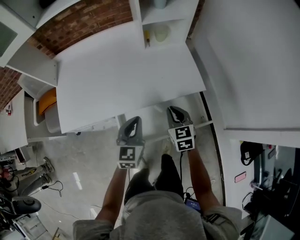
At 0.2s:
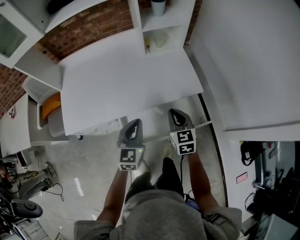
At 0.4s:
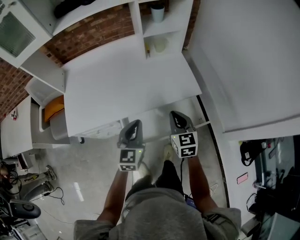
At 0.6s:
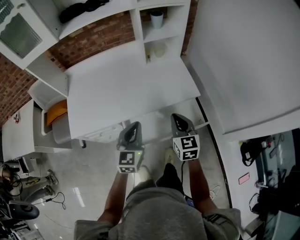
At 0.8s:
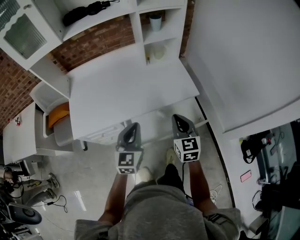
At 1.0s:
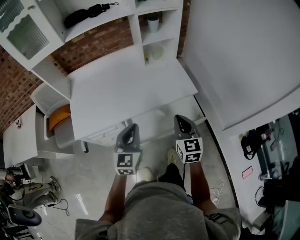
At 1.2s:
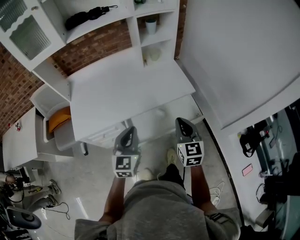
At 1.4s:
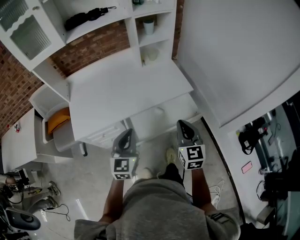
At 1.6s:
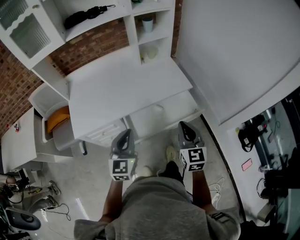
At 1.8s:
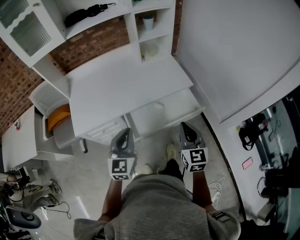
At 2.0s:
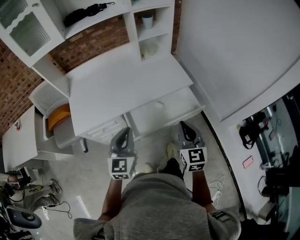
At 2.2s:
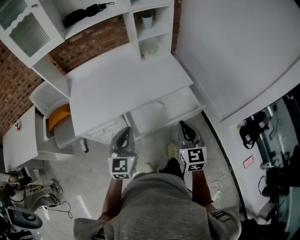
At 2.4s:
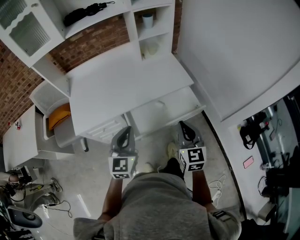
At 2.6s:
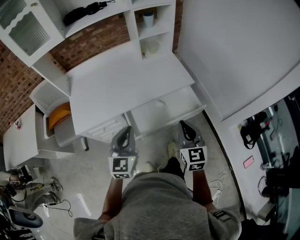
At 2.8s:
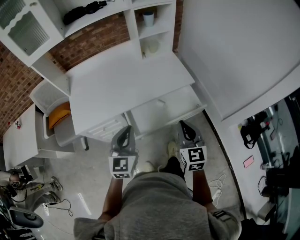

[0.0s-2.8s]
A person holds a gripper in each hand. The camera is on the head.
0.0s to 1.4s: The left gripper goes approximately 20 cm backward, upward and to the left. Meanwhile the right gripper goes some 25 cm backward and upward, and rotates roughly 20 degrees.
1.4s to 2.8s: The grippers stay close to where they were, moving slightly.

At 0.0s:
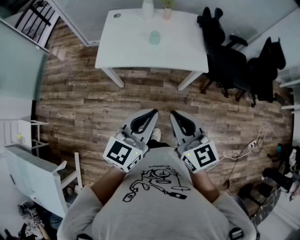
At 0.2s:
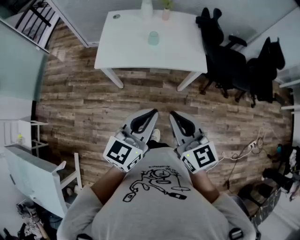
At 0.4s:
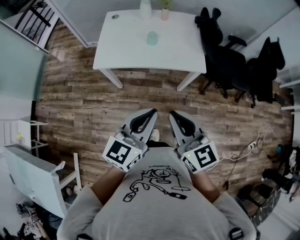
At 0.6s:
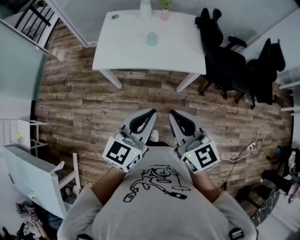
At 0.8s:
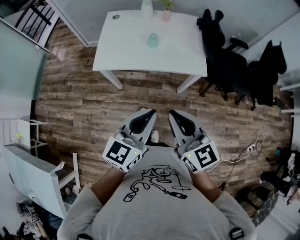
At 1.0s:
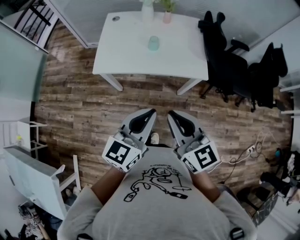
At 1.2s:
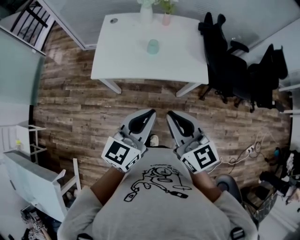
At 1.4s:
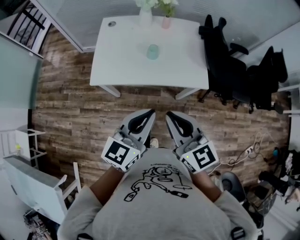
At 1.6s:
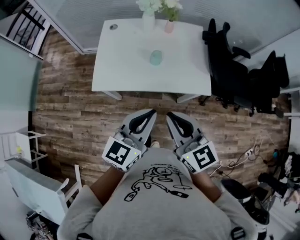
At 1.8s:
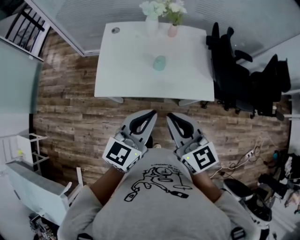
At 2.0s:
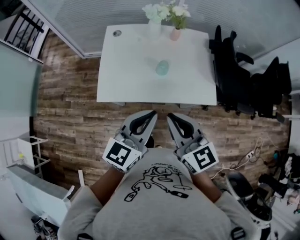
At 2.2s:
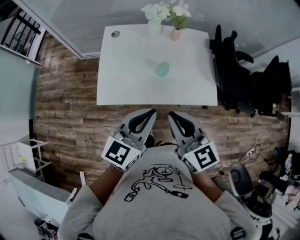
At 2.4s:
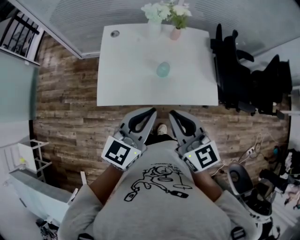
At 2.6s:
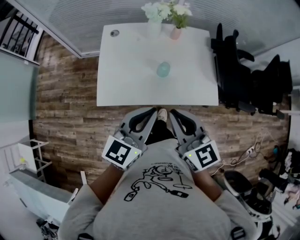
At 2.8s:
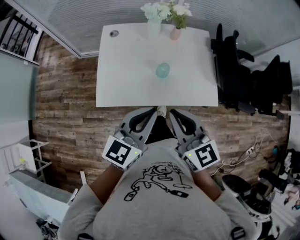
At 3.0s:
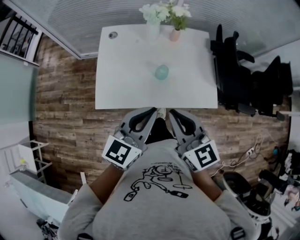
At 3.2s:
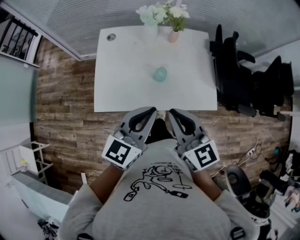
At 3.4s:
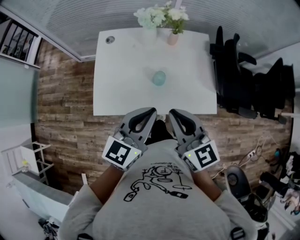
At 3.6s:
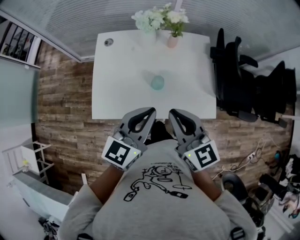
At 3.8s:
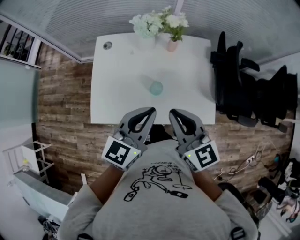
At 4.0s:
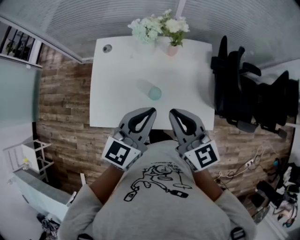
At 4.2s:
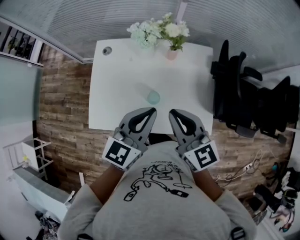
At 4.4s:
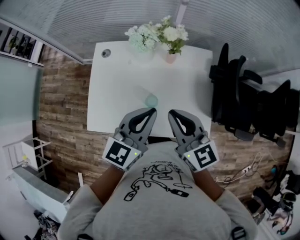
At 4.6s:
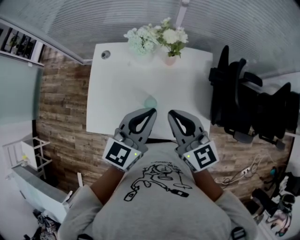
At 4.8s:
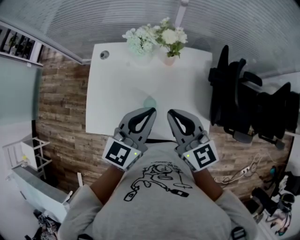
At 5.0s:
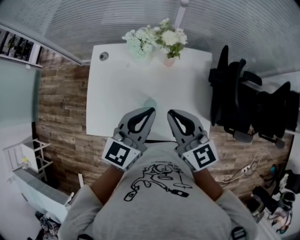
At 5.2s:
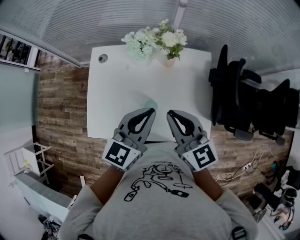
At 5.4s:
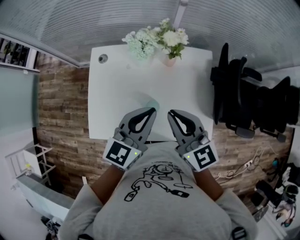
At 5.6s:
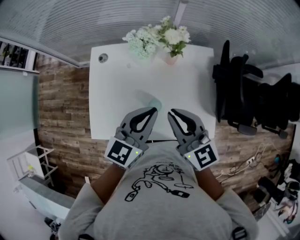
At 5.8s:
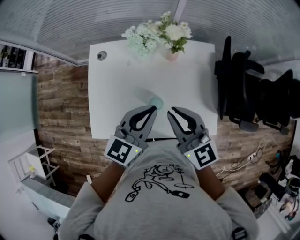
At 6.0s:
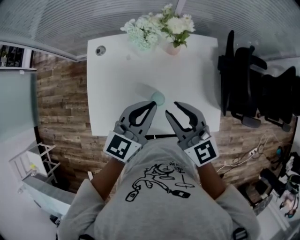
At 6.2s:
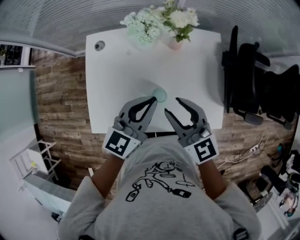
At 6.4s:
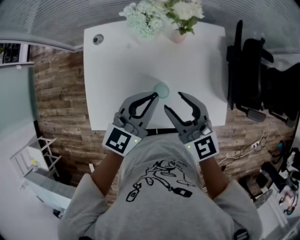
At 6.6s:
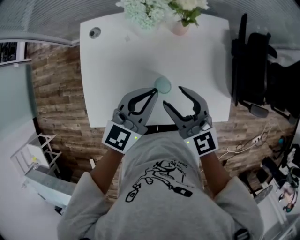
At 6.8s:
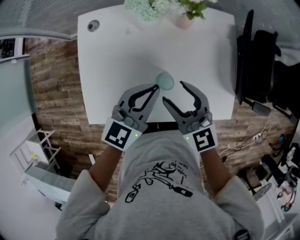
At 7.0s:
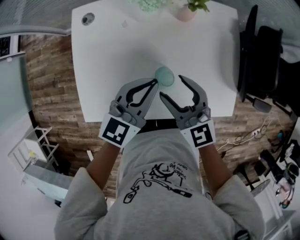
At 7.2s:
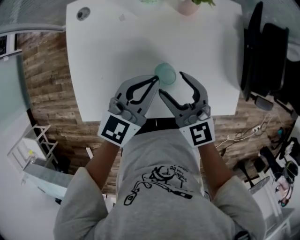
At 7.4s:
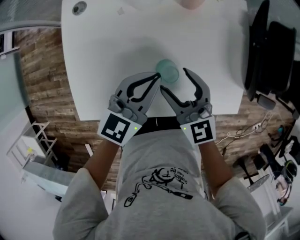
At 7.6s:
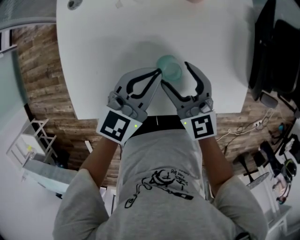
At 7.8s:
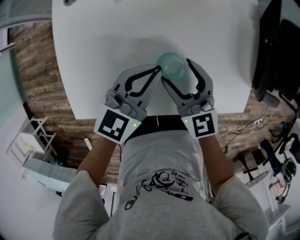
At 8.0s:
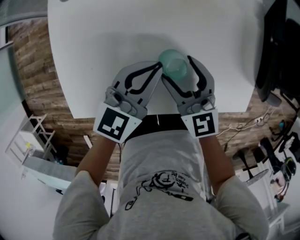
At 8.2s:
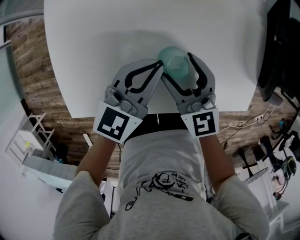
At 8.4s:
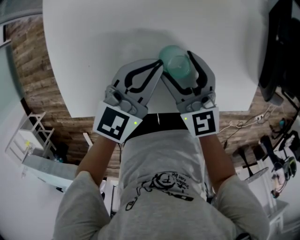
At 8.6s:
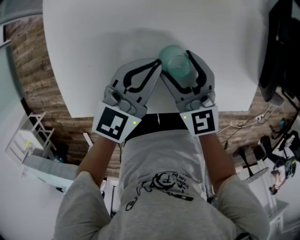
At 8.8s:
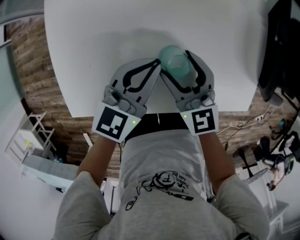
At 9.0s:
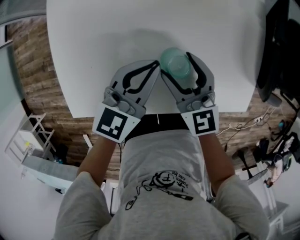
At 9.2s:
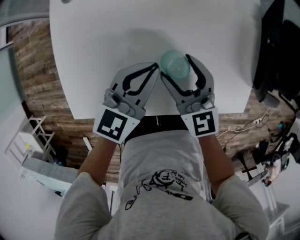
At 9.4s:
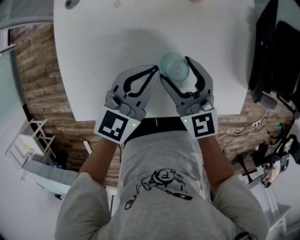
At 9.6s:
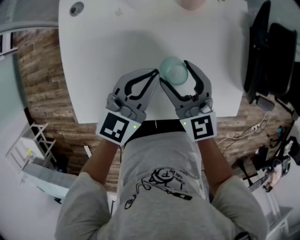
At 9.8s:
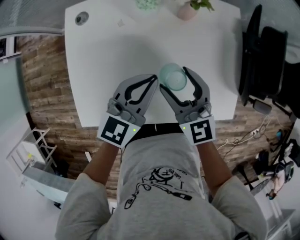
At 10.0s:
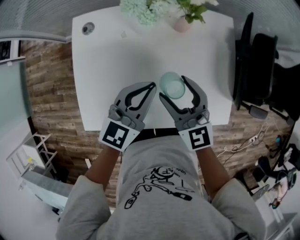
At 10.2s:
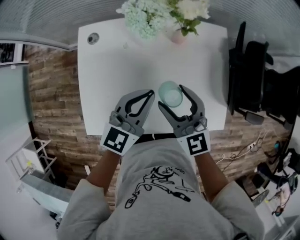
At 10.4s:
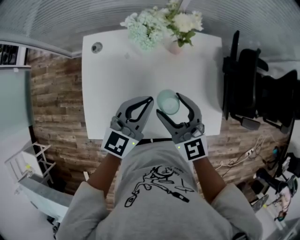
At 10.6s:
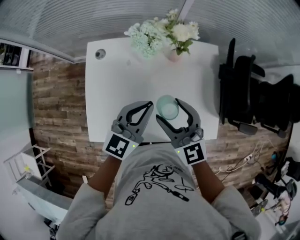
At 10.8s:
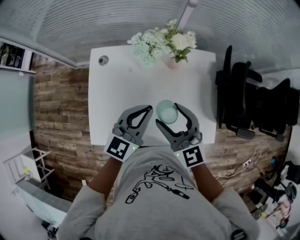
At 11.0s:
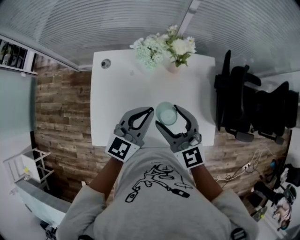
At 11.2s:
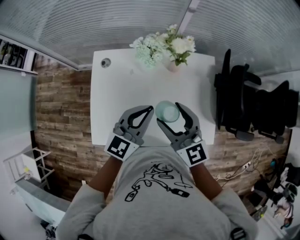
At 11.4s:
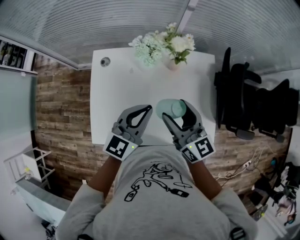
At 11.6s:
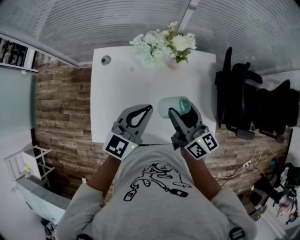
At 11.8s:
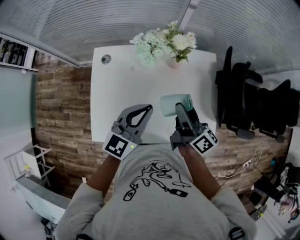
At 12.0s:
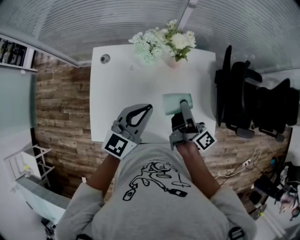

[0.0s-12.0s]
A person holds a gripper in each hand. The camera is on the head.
0.0s to 1.6s: Both grippers move forward, approximately 15 cm.
1.6s to 3.0s: The left gripper travels forward and to the left by about 15 cm, while the right gripper is displaced forward by about 10 cm.
3.0s to 4.4s: Both grippers travel together forward and to the right, approximately 20 cm.
4.4s to 6.0s: The right gripper shifts by approximately 5 cm. The left gripper is displaced downward by roughly 5 cm.
6.0s to 7.6s: The grippers both shift downward by roughly 20 cm. The right gripper opens.
7.6s to 9.0s: The grippers make only small movements.
9.0s to 10.4s: Both grippers move upward, about 15 cm.
10.4s to 12.0s: The right gripper goes some 10 cm to the right, and rotates around the line of its fingers by roughly 80 degrees, clockwise from behind. Meanwhile the left gripper shifts by roughly 5 cm.

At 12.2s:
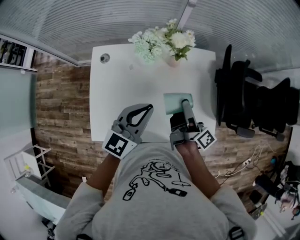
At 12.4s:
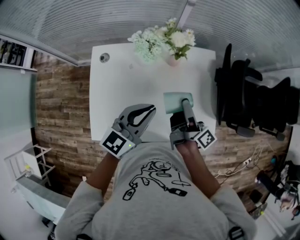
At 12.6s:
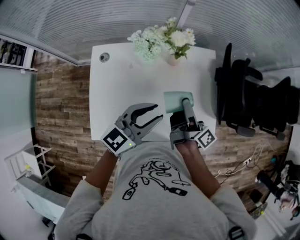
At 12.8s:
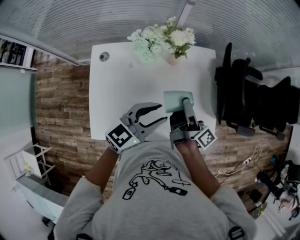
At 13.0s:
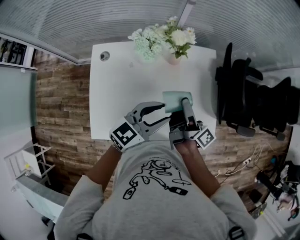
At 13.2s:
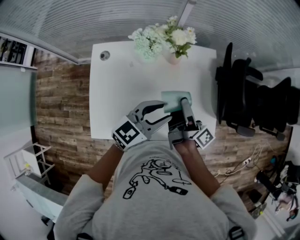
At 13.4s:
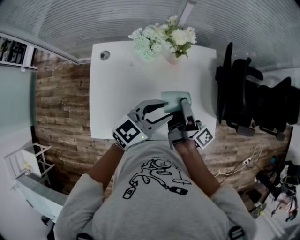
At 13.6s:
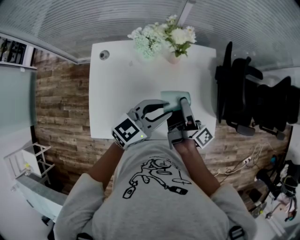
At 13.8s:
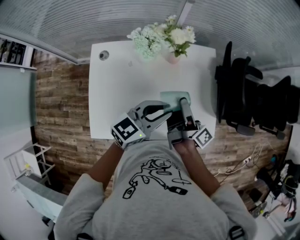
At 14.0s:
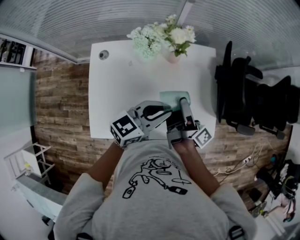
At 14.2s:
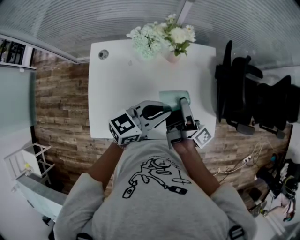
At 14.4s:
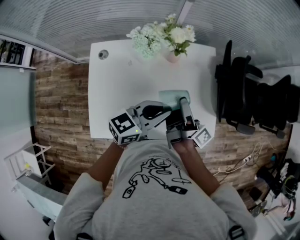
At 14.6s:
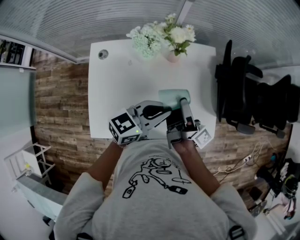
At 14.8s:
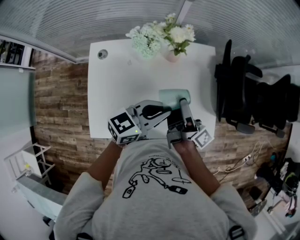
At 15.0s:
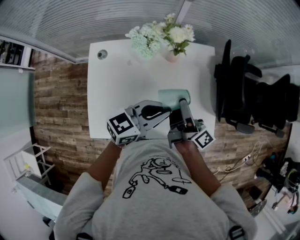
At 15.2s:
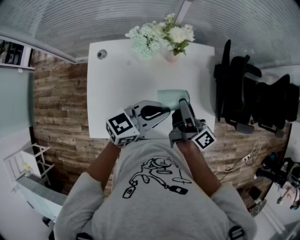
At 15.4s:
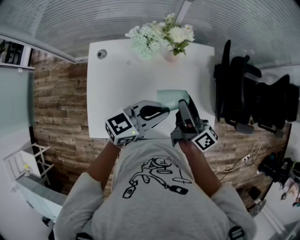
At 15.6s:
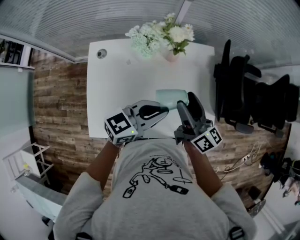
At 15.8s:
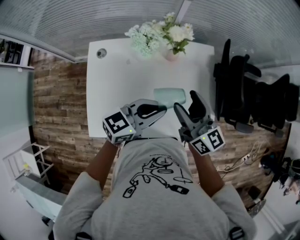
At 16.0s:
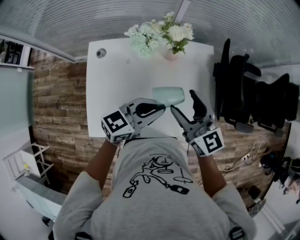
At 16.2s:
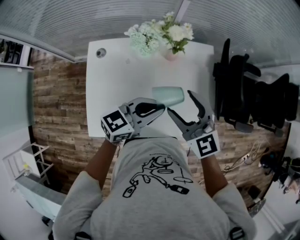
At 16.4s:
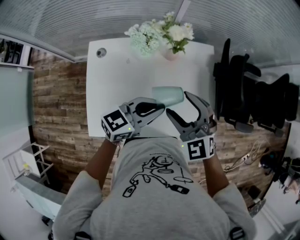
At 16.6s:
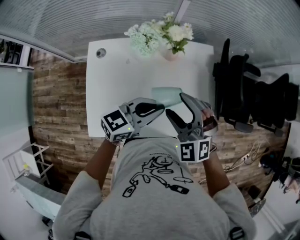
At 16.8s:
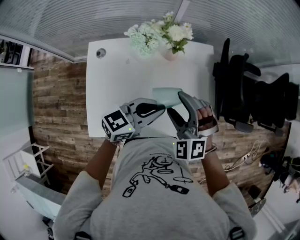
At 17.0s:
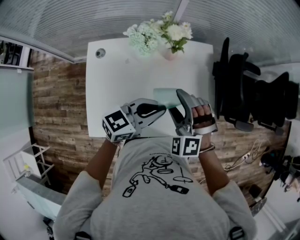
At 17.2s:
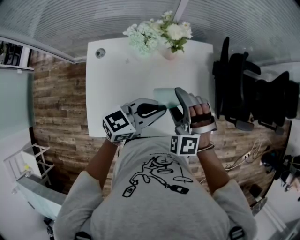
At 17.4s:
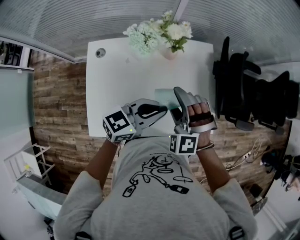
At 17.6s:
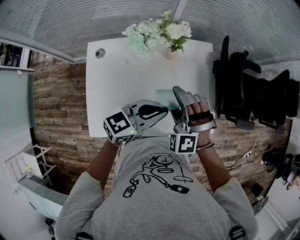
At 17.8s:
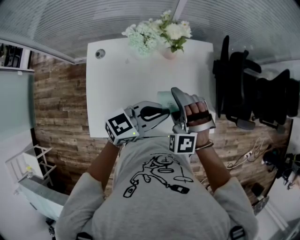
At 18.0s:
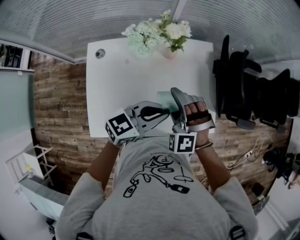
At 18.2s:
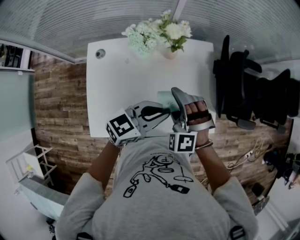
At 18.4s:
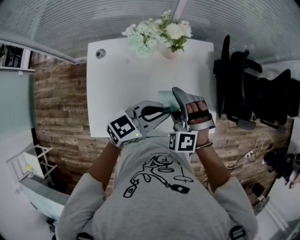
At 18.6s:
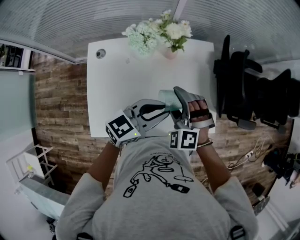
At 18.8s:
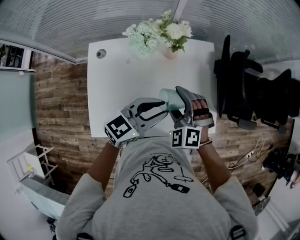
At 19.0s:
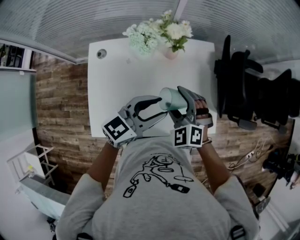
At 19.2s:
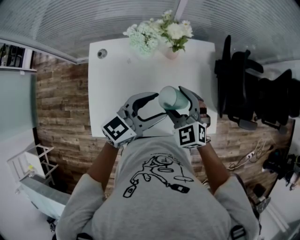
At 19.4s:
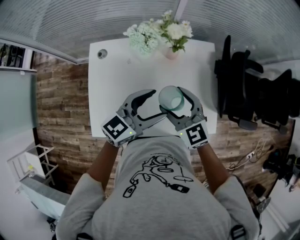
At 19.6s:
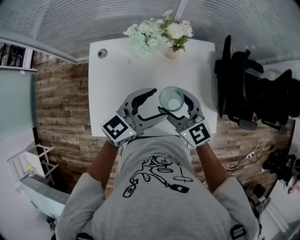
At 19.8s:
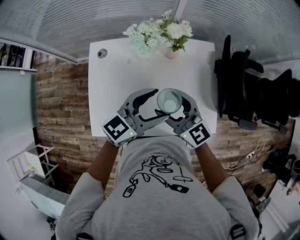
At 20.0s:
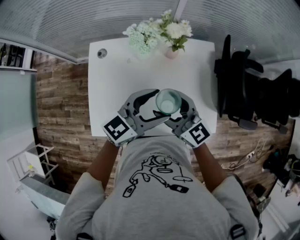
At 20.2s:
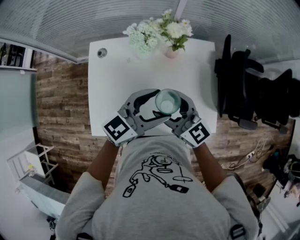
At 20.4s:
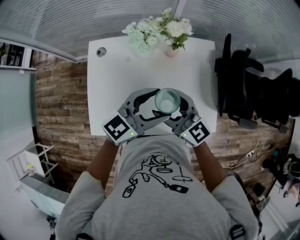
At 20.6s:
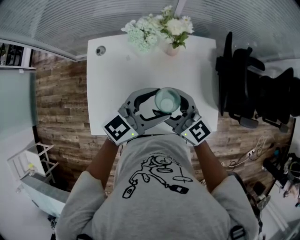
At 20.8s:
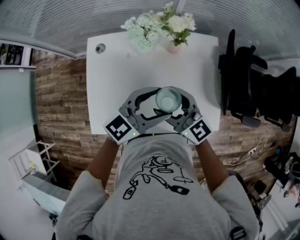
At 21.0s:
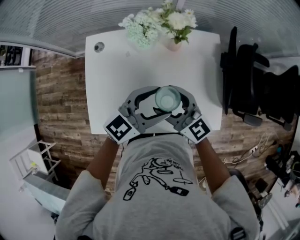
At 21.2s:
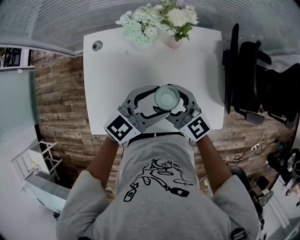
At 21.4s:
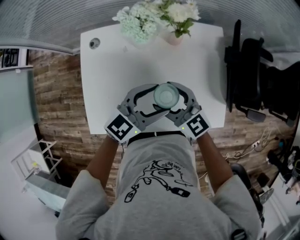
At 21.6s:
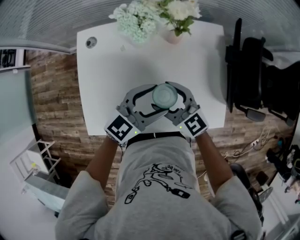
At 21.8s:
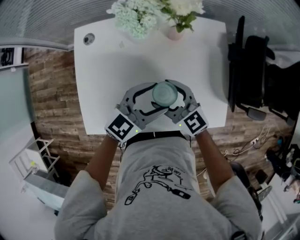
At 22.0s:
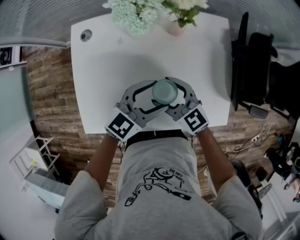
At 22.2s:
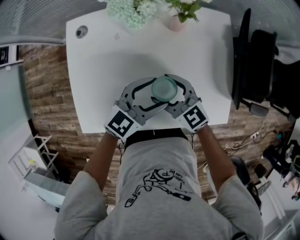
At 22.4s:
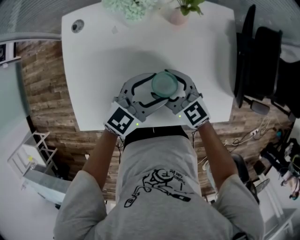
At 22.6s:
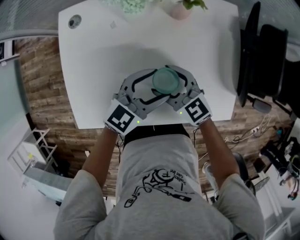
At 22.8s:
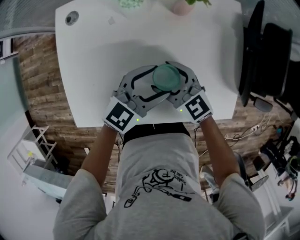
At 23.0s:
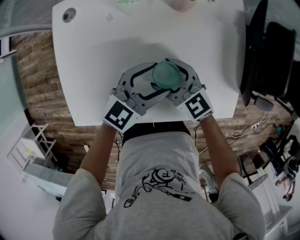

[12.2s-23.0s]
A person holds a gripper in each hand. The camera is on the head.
12.2s to 13.8s: The left gripper heads to the right, covering about 5 cm, and changes its angle by approximately 20 degrees.
13.8s to 15.2s: The grippers stay close to where they were, moving slightly.
15.2s to 16.8s: The right gripper moves roughly 5 cm, and twists about 120 degrees counterclockwise, seen from behind.
16.8s to 18.4s: There are only small adjustments of the grippers.
18.4s to 20.0s: The left gripper opens up, while the right gripper changes place by about 5 cm, and rolls clockwise, seen from behind, by approximately 70 degrees.
20.0s to 21.4s: The grippers both shift downward by approximately 10 cm.
21.4s to 23.0s: The two grippers go approximately 15 cm downward.
